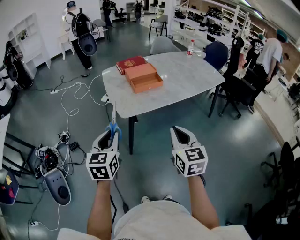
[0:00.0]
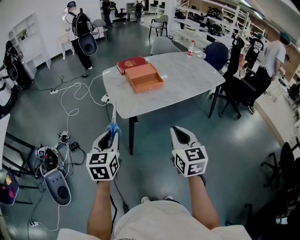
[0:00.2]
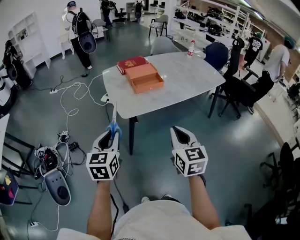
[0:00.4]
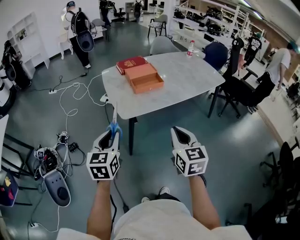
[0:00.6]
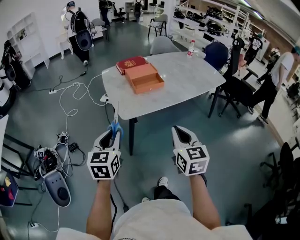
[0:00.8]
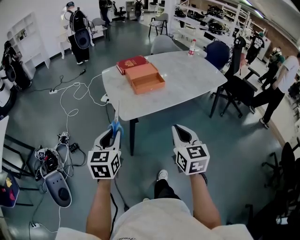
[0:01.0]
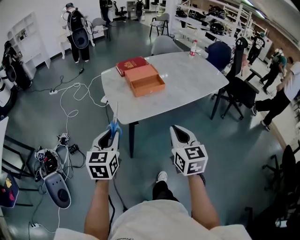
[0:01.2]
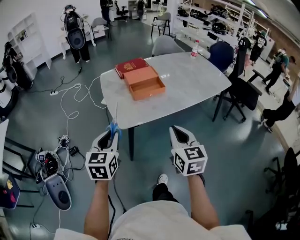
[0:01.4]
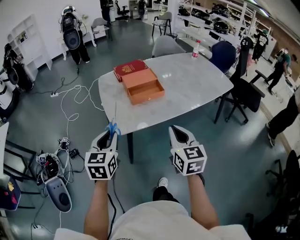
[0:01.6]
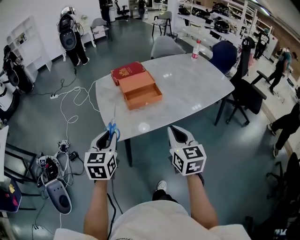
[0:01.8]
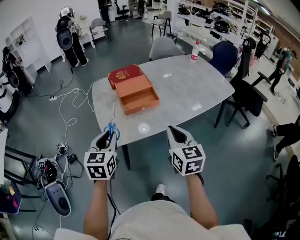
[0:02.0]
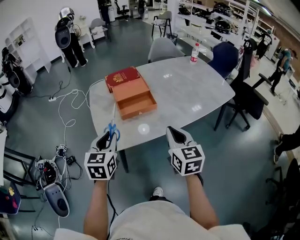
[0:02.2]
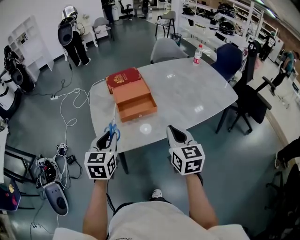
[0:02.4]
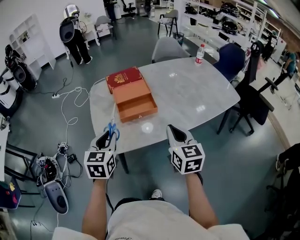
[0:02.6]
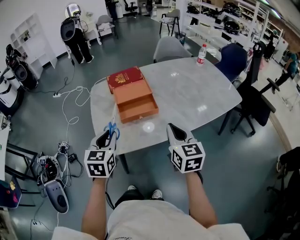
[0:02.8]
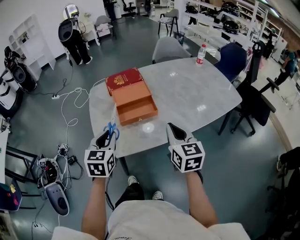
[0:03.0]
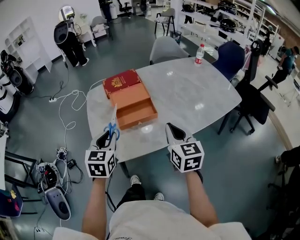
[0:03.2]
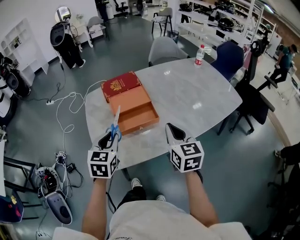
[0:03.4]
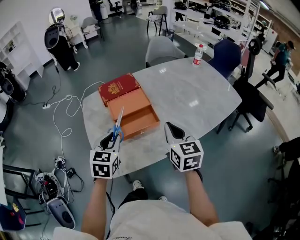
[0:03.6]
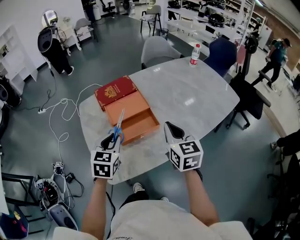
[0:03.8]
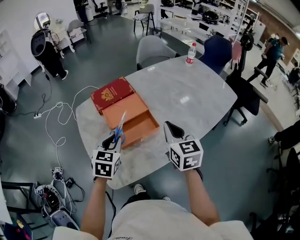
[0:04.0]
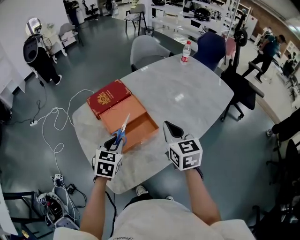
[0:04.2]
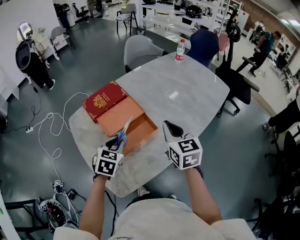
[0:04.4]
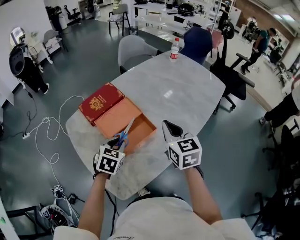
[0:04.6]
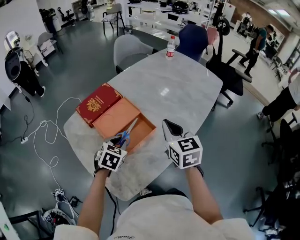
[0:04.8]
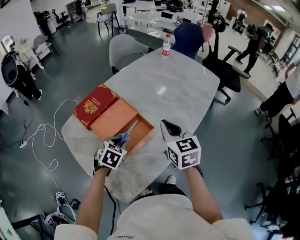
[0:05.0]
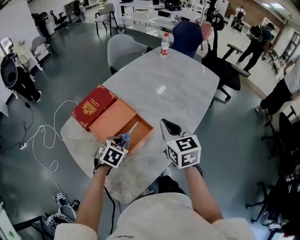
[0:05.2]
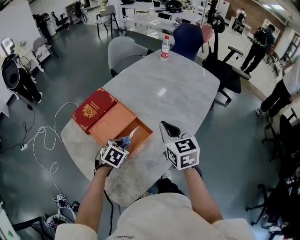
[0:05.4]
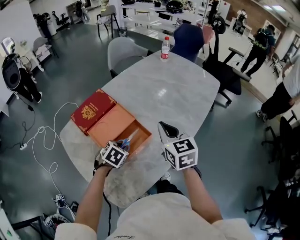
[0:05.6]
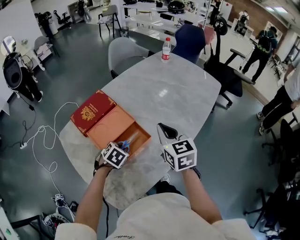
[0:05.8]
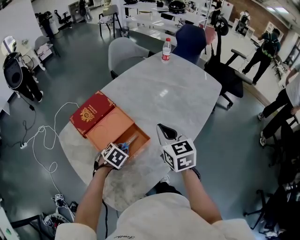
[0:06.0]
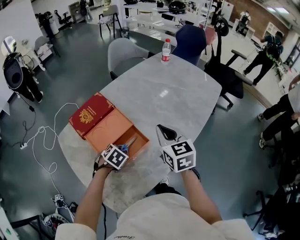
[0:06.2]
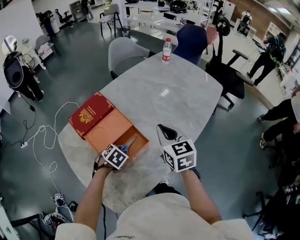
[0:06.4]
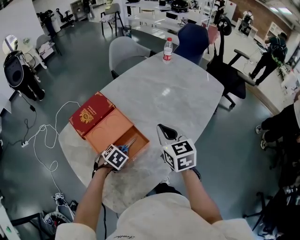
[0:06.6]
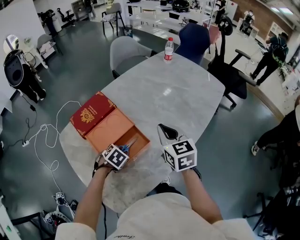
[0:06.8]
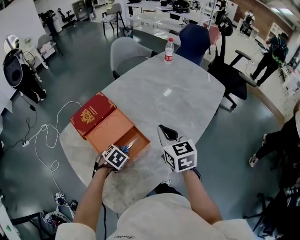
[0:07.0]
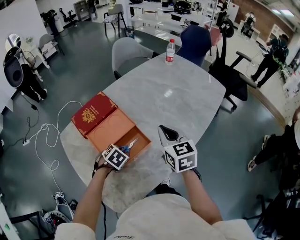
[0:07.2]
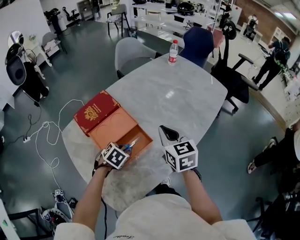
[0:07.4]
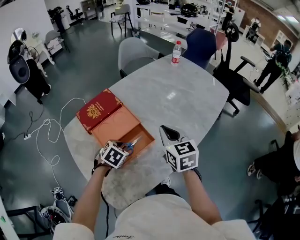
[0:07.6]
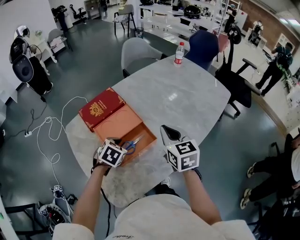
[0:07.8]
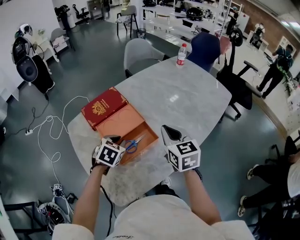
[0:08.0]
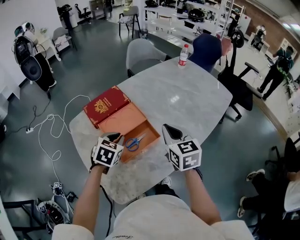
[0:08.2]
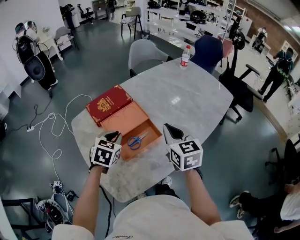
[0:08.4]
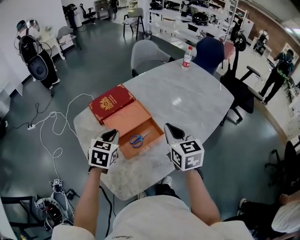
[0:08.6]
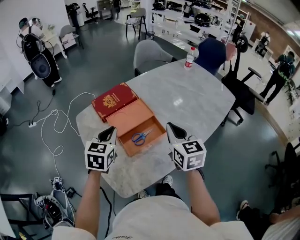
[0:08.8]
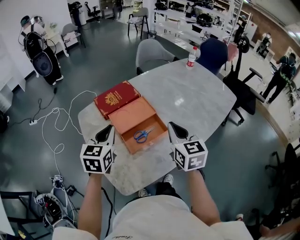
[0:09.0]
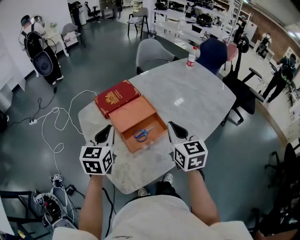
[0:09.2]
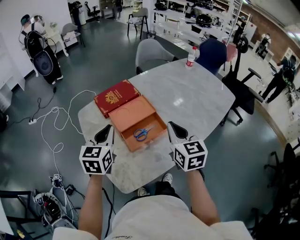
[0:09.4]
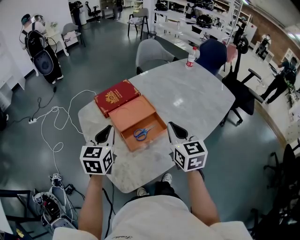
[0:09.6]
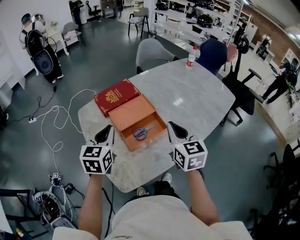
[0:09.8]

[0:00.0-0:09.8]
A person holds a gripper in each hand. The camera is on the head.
0:00.0 to 0:01.4: Both grippers travel together forward, roughly 10 cm.
0:01.4 to 0:02.8: Both grippers move forward and to the right, some 25 cm.
0:02.8 to 0:04.2: Both grippers move forward, about 20 cm. The left gripper changes its angle by approximately 30 degrees.
0:04.2 to 0:05.6: The left gripper goes roughly 10 cm downward and forward, and swivels approximately 30 degrees.
0:05.6 to 0:07.0: The grippers make only small movements.
0:07.0 to 0:08.4: The left gripper shifts approximately 15 cm upward and to the left, and turns by roughly 40 degrees. Meanwhile the right gripper shifts by some 5 cm.
0:08.4 to 0:09.8: The left gripper travels upward, to the left and backward by some 10 cm, and rotates some 30 degrees, while the right gripper shifts by about 5 cm.

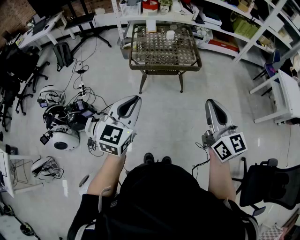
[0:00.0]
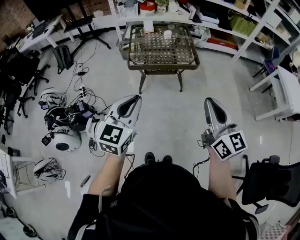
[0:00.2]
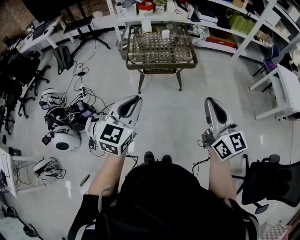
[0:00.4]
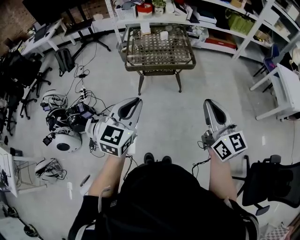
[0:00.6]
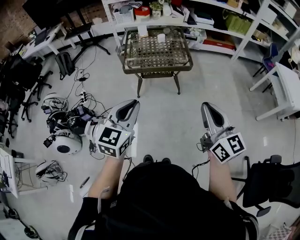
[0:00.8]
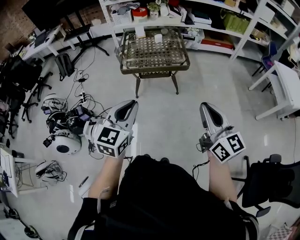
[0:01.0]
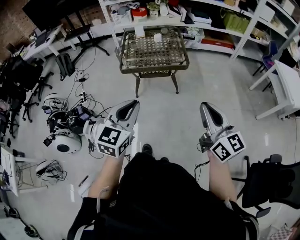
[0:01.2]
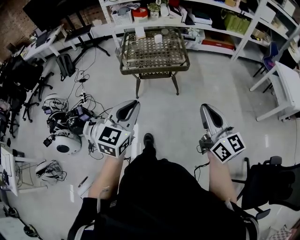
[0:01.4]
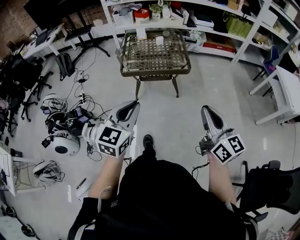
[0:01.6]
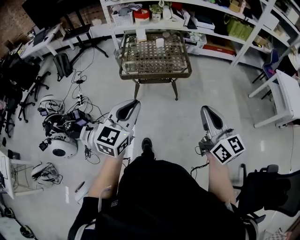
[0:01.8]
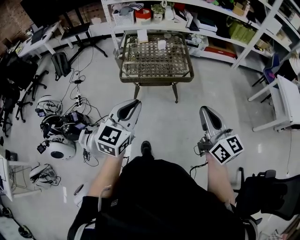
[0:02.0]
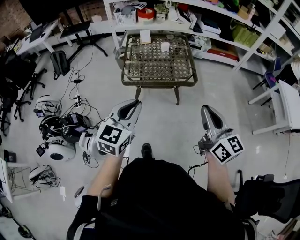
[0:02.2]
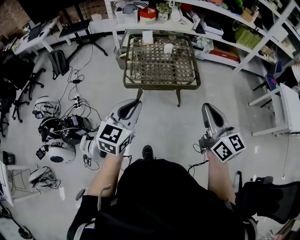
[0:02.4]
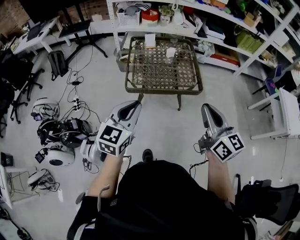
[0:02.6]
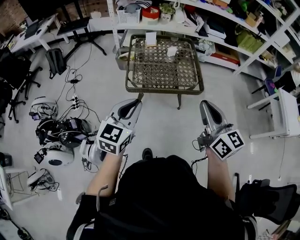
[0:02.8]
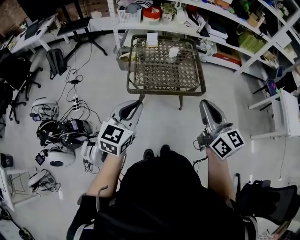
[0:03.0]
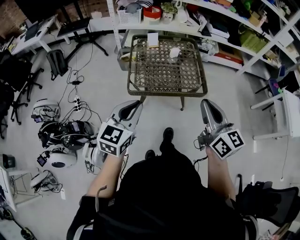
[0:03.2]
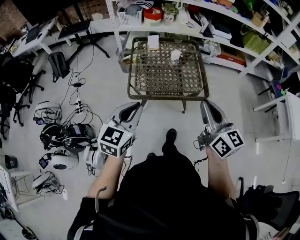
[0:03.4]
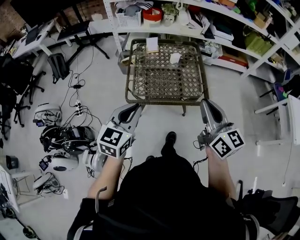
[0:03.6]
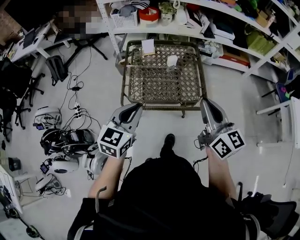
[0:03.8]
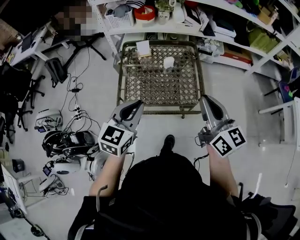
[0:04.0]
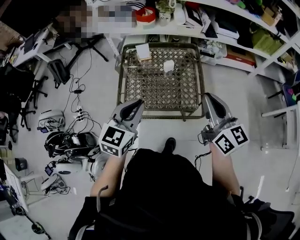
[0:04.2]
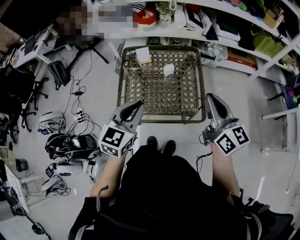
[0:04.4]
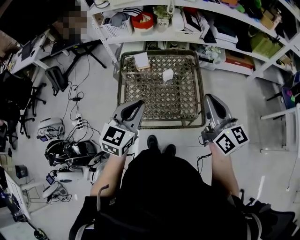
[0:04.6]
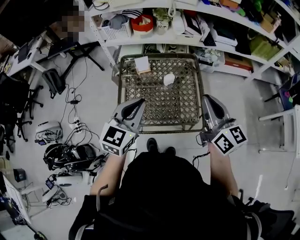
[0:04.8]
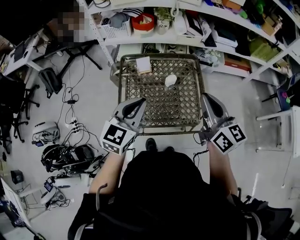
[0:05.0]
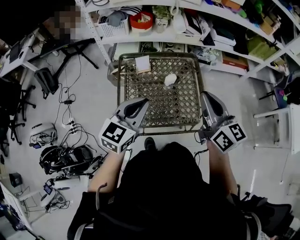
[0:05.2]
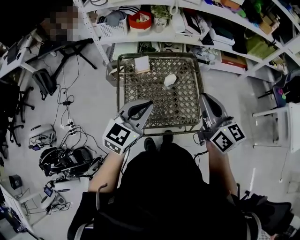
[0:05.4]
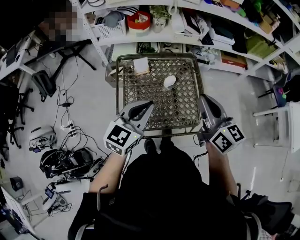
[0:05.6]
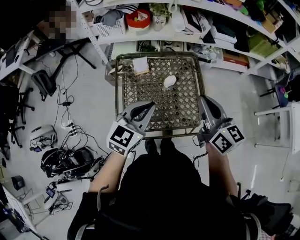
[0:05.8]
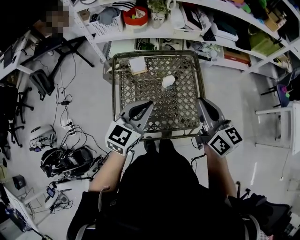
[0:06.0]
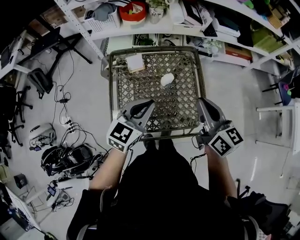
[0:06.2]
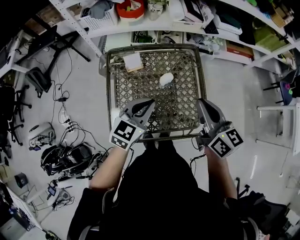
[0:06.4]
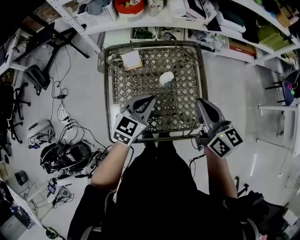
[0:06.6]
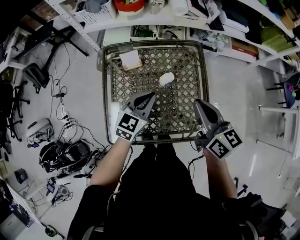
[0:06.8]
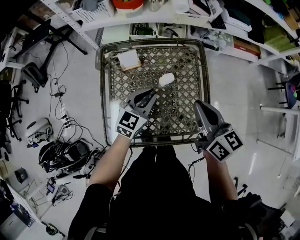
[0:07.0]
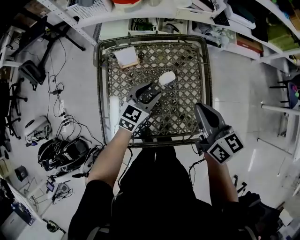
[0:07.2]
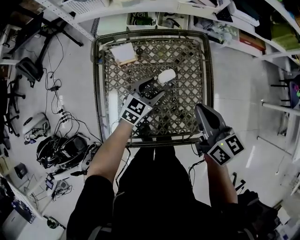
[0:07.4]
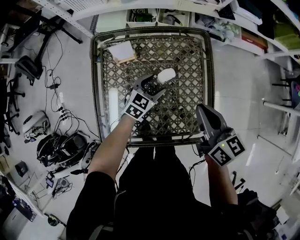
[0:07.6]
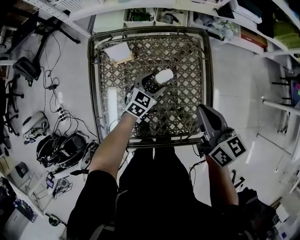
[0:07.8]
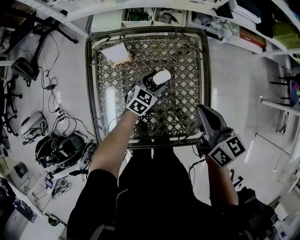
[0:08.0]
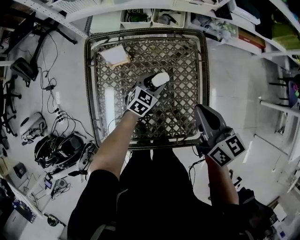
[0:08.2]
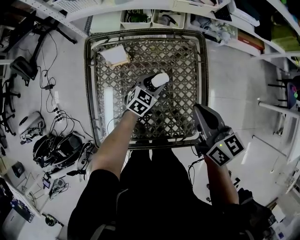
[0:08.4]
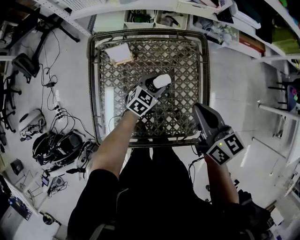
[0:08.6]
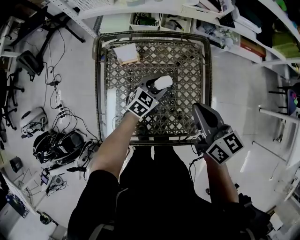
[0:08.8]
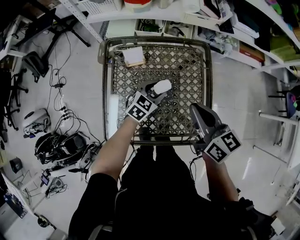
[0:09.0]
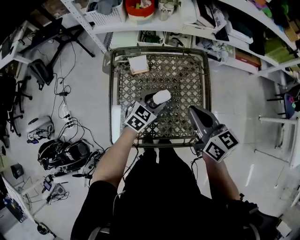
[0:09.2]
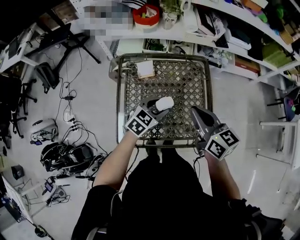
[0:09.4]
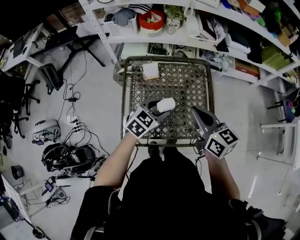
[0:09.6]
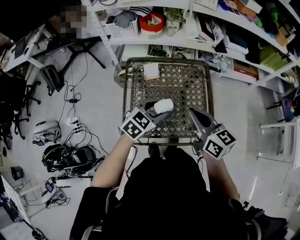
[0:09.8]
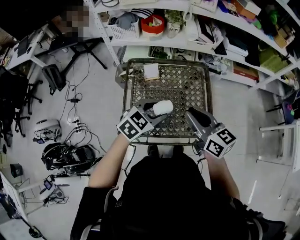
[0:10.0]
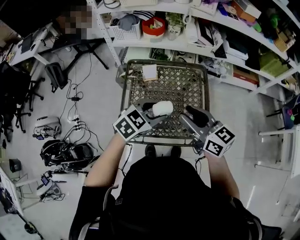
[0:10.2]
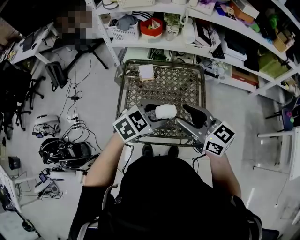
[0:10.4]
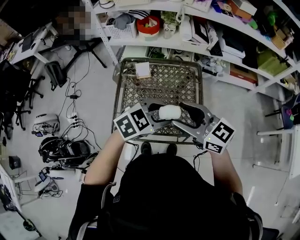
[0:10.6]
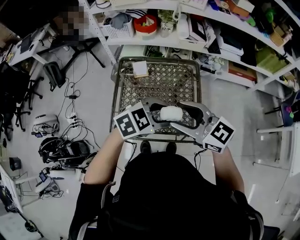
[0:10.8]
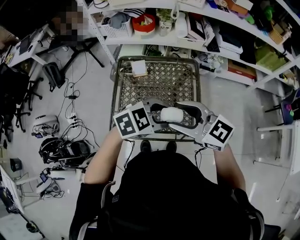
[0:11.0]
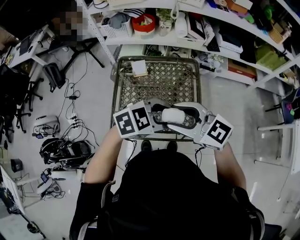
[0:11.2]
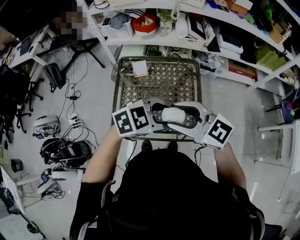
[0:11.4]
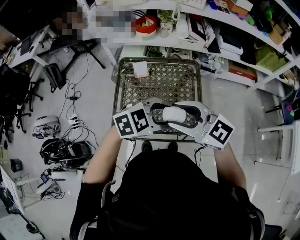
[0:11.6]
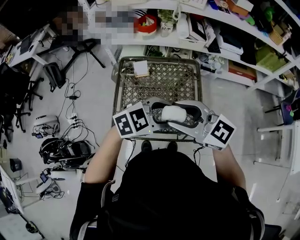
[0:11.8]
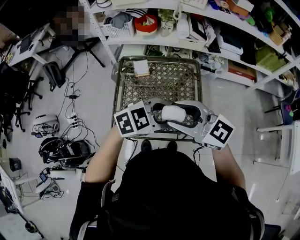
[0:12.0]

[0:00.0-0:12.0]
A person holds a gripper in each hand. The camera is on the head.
0:00.0 to 0:01.6: The two grippers go some 10 cm to the right.
0:01.6 to 0:03.0: Both grippers move forward and to the left, approximately 25 cm.
0:03.0 to 0:04.4: The two grippers go some 25 cm forward and to the right.
0:04.4 to 0:06.0: The right gripper travels forward and to the left by approximately 15 cm; the left gripper shifts roughly 15 cm forward.
0:06.0 to 0:07.6: The left gripper is displaced downward and forward by about 35 cm, and opens. Meanwhile the right gripper shifts about 15 cm downward and forward.
0:07.6 to 0:09.0: The right gripper changes place by approximately 5 cm, while the left gripper changes place by roughly 5 cm.
0:09.0 to 0:10.4: The right gripper is displaced upward and backward by some 15 cm, swivels about 30 degrees, and opens. Meanwhile the left gripper heads upward and backward, covering roughly 30 cm.
0:10.4 to 0:12.0: The left gripper ends up about 5 cm from where it was; the right gripper changes place by approximately 5 cm, and swivels approximately 20 degrees.

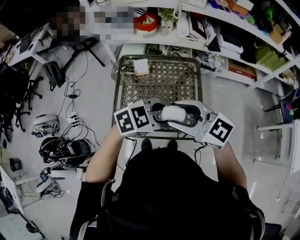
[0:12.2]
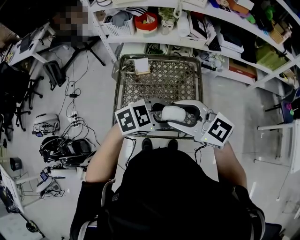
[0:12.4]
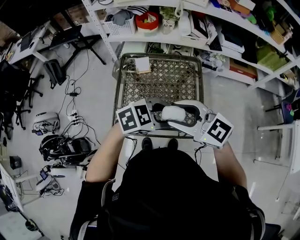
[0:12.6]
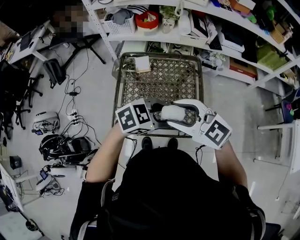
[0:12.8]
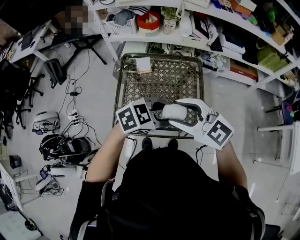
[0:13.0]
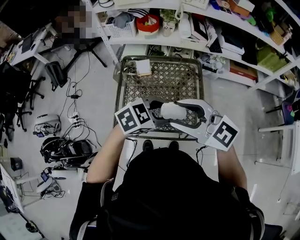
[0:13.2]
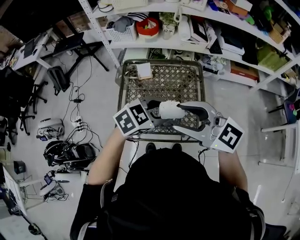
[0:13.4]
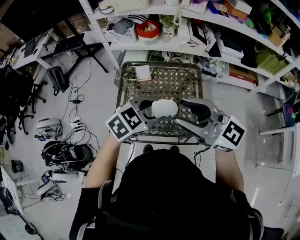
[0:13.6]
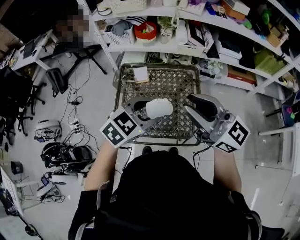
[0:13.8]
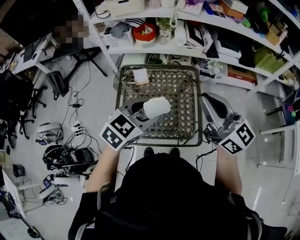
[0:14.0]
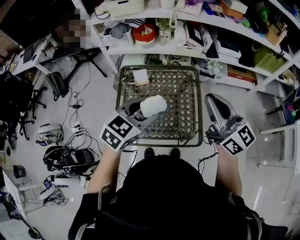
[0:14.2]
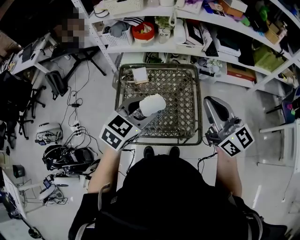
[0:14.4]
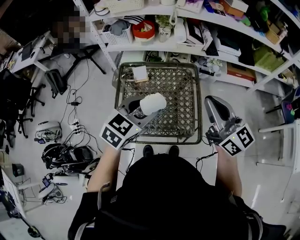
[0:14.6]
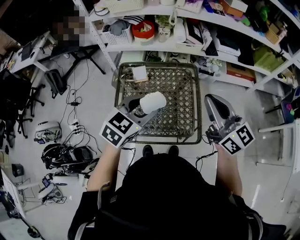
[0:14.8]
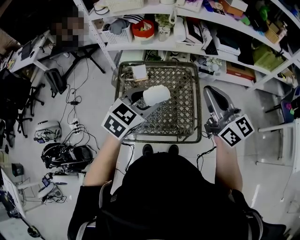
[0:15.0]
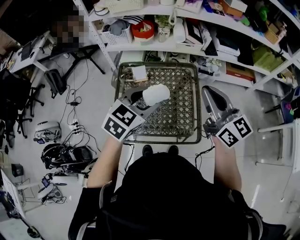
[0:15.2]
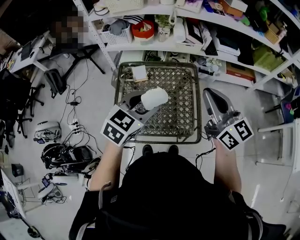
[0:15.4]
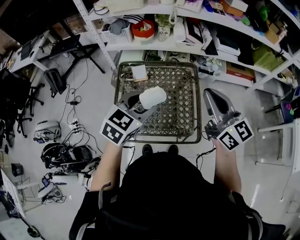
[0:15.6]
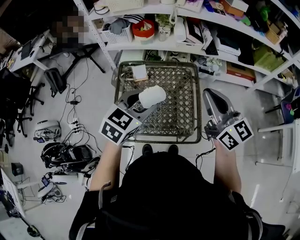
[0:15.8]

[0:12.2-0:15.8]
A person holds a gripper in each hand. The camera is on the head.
0:12.2 to 0:14.0: The right gripper shifts by about 15 cm, turns by some 40 degrees, and closes its fingers, while the left gripper moves roughly 10 cm, and rotates roughly 30 degrees.
0:14.0 to 0:15.8: The grippers make only small movements.
